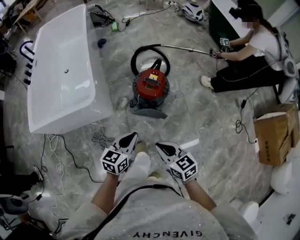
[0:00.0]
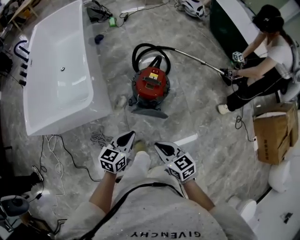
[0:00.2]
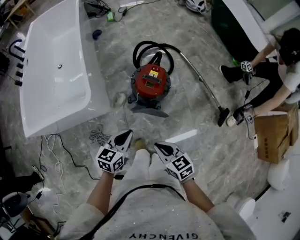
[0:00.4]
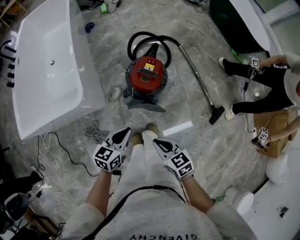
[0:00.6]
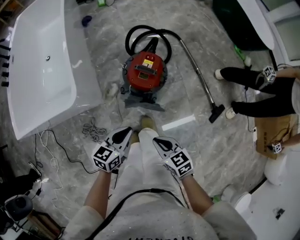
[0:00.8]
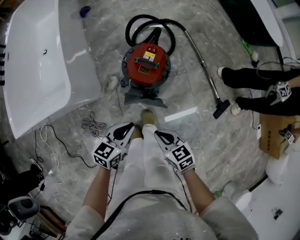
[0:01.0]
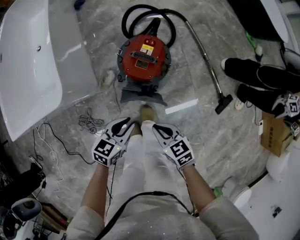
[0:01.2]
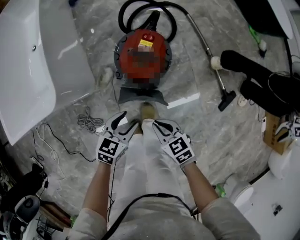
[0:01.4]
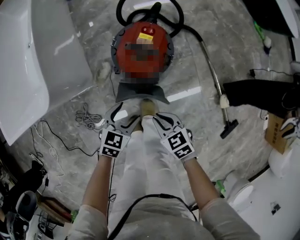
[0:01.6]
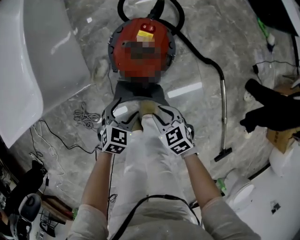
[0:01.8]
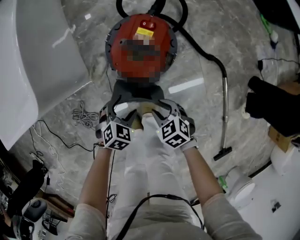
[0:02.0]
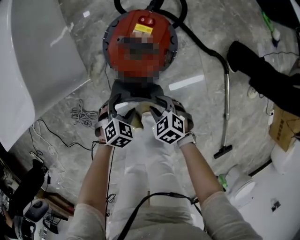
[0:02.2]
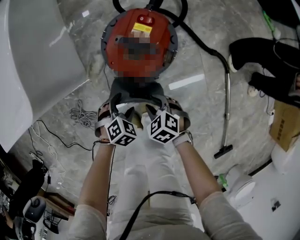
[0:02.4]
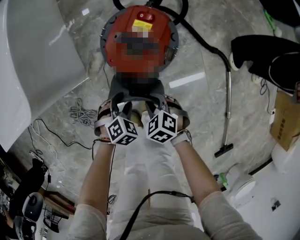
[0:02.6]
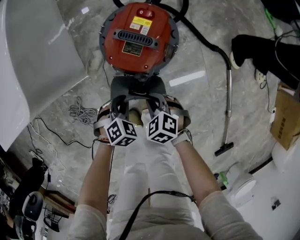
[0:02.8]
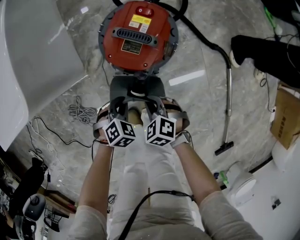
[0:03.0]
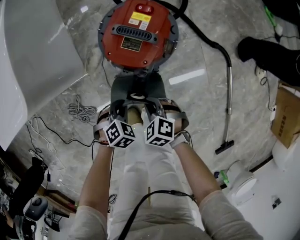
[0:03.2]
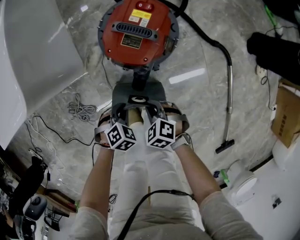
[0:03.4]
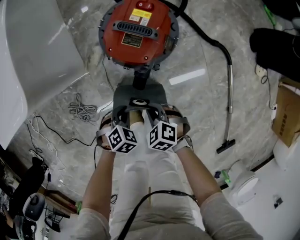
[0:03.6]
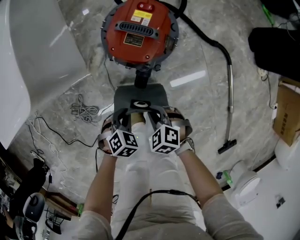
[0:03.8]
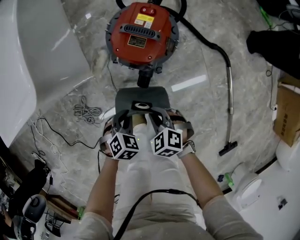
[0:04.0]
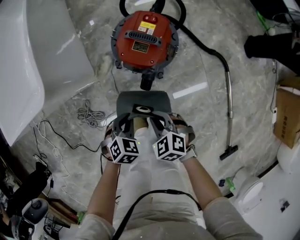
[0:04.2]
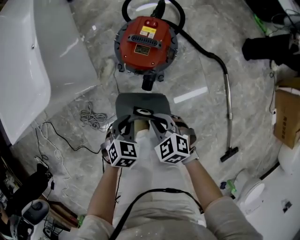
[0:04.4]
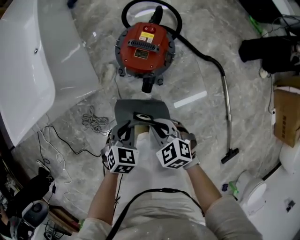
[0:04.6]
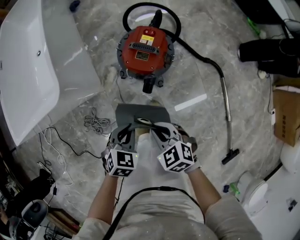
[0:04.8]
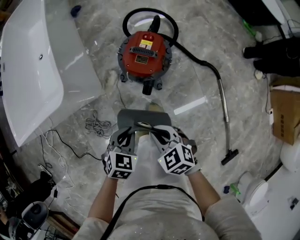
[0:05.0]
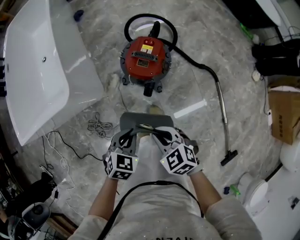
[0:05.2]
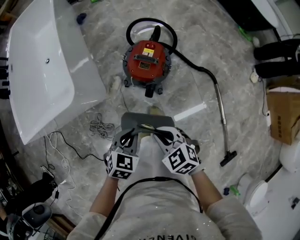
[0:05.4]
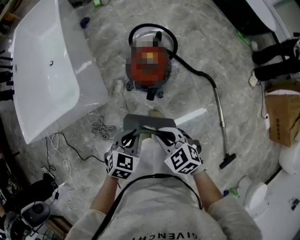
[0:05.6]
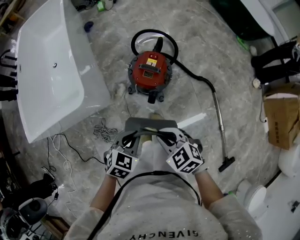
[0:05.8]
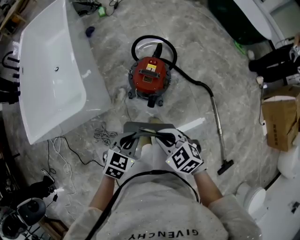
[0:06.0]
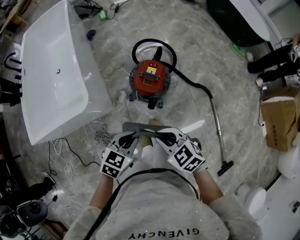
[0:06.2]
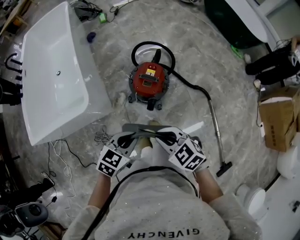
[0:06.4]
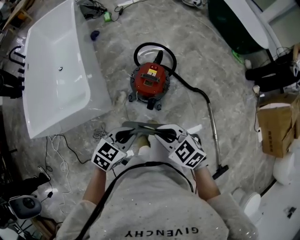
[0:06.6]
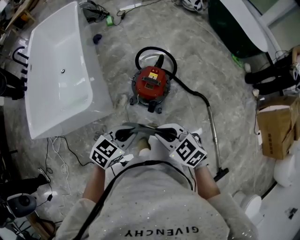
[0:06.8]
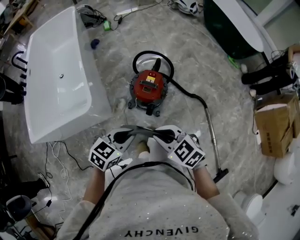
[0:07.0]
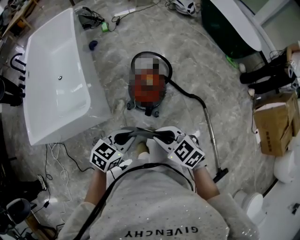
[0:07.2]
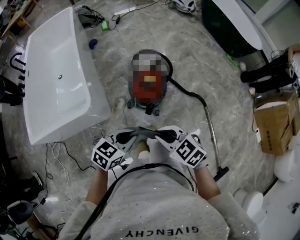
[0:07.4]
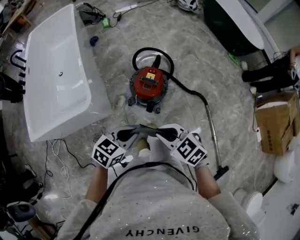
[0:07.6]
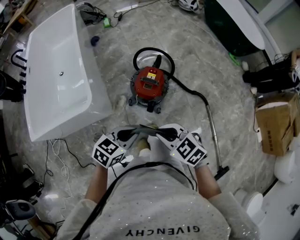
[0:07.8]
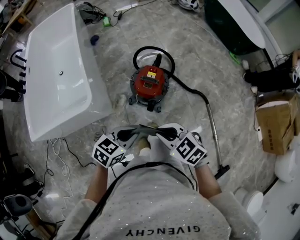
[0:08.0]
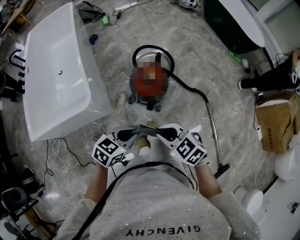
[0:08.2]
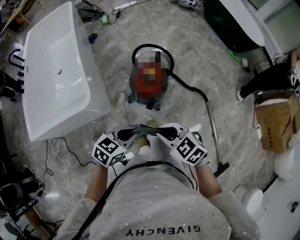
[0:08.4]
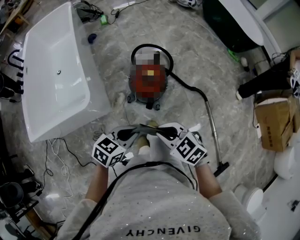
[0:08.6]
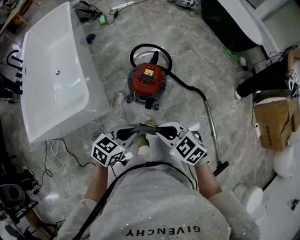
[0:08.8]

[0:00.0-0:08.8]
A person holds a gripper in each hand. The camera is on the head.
0:00.0 to 0:01.4: The two grippers go about 25 cm downward and forward. The left gripper opens up.
0:01.4 to 0:03.0: Both grippers move downward, approximately 20 cm. The right gripper changes its angle by some 40 degrees, and opens, then closes once more. Meanwhile the left gripper tilts its fingers roughly 30 degrees downward, and closes its fingers.
0:03.0 to 0:04.4: The two grippers go approximately 15 cm upward.
0:04.4 to 0:05.8: The grippers both shift upward by some 20 cm.
0:05.8 to 0:07.4: Both grippers move upward, some 10 cm. The left gripper rotates approximately 20 degrees.
0:07.4 to 0:08.8: The grippers move only a little.

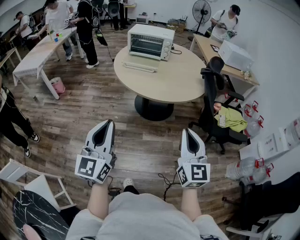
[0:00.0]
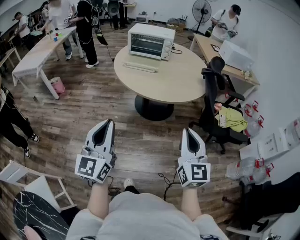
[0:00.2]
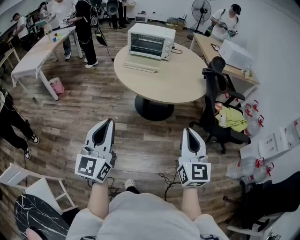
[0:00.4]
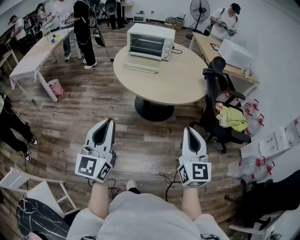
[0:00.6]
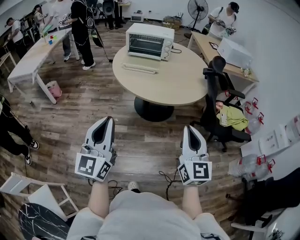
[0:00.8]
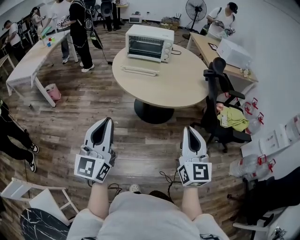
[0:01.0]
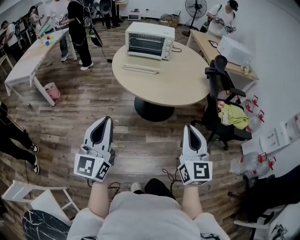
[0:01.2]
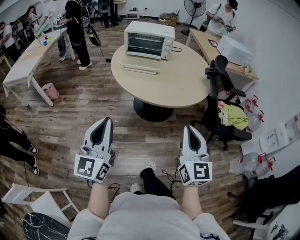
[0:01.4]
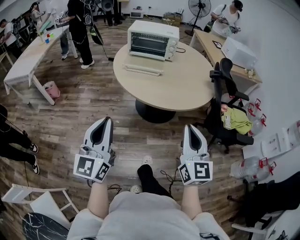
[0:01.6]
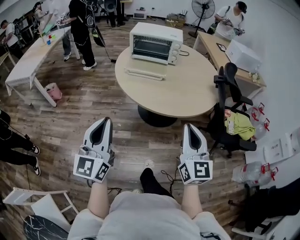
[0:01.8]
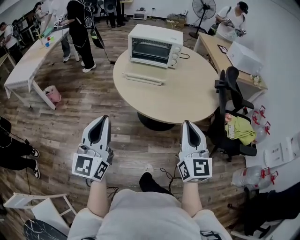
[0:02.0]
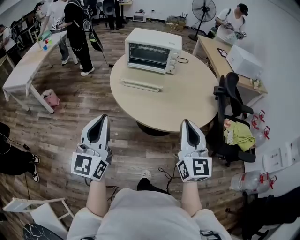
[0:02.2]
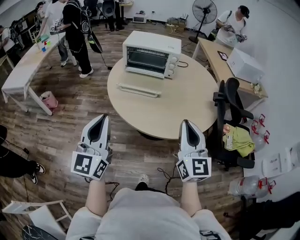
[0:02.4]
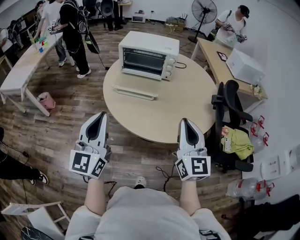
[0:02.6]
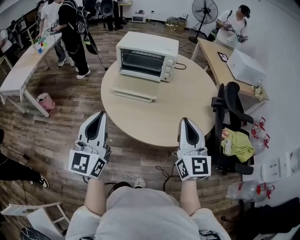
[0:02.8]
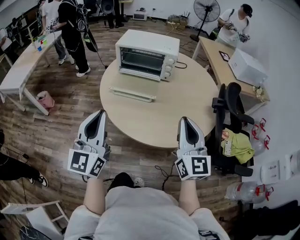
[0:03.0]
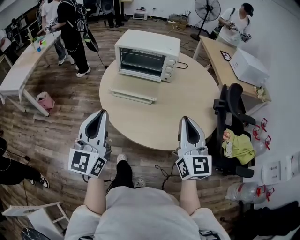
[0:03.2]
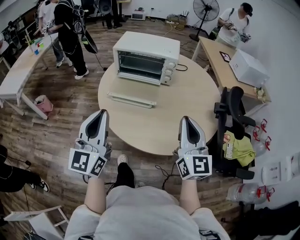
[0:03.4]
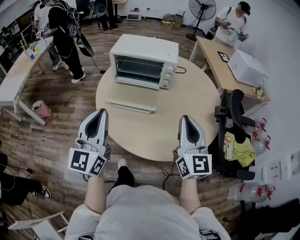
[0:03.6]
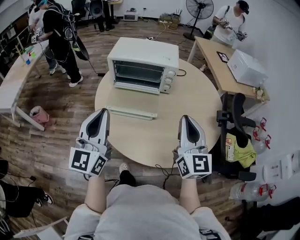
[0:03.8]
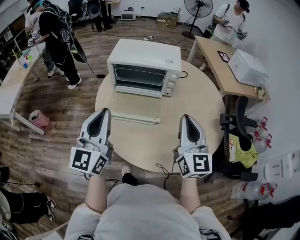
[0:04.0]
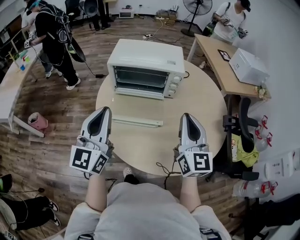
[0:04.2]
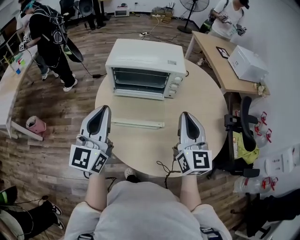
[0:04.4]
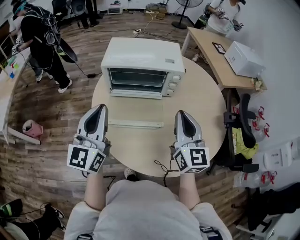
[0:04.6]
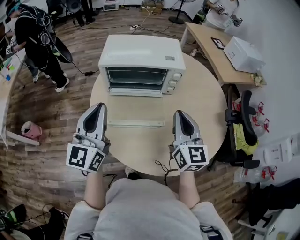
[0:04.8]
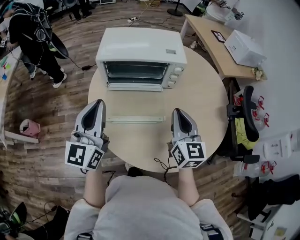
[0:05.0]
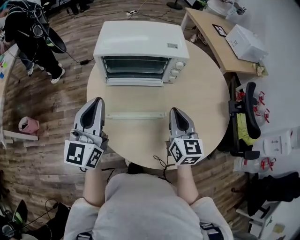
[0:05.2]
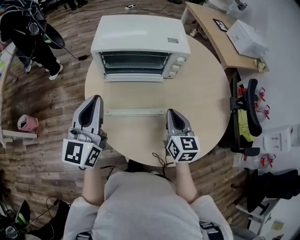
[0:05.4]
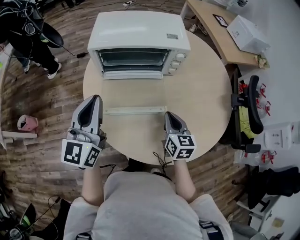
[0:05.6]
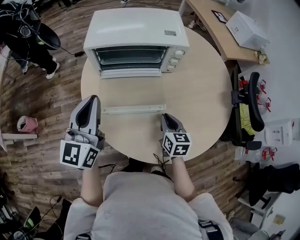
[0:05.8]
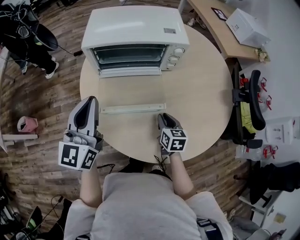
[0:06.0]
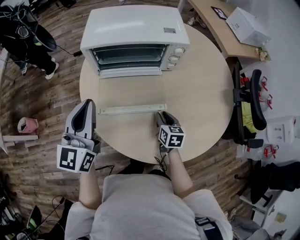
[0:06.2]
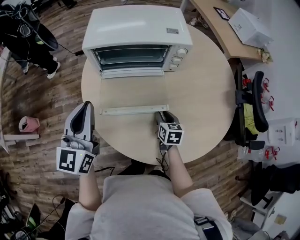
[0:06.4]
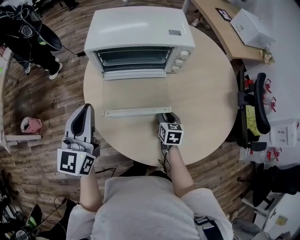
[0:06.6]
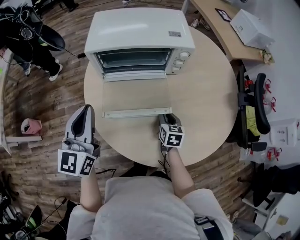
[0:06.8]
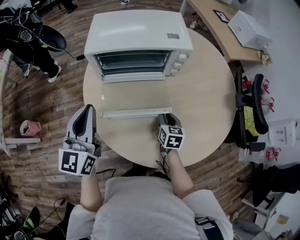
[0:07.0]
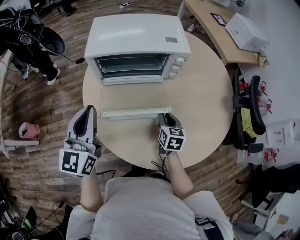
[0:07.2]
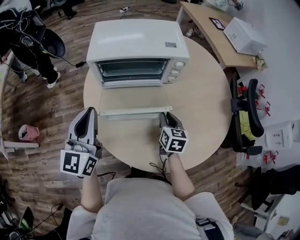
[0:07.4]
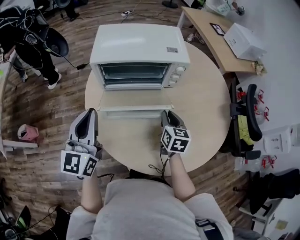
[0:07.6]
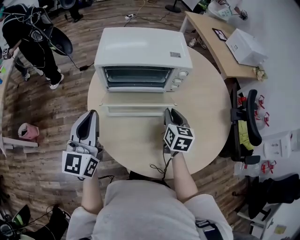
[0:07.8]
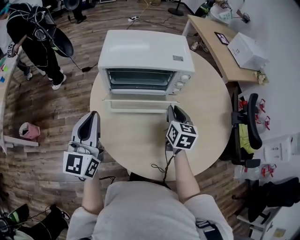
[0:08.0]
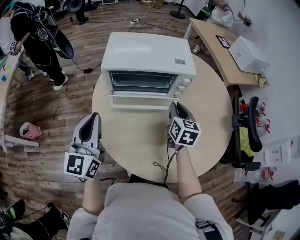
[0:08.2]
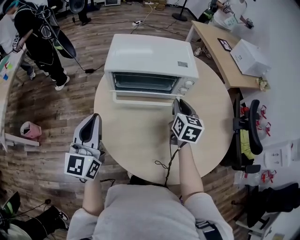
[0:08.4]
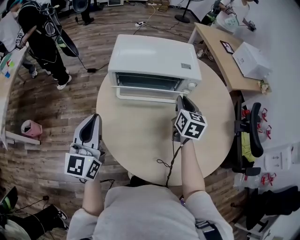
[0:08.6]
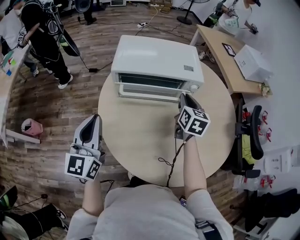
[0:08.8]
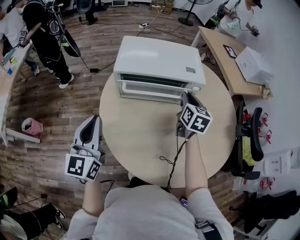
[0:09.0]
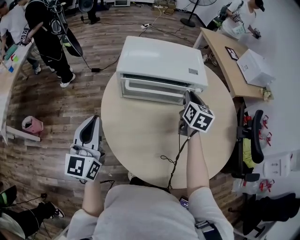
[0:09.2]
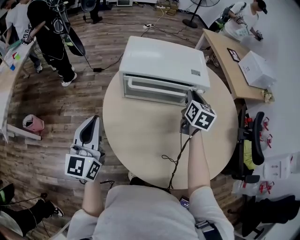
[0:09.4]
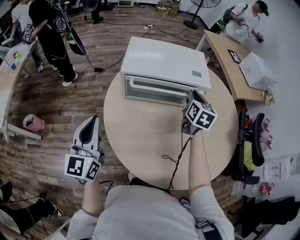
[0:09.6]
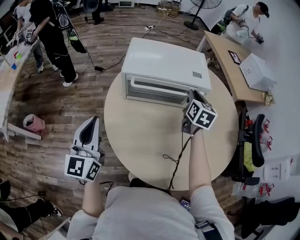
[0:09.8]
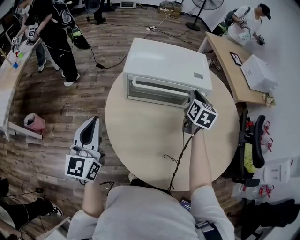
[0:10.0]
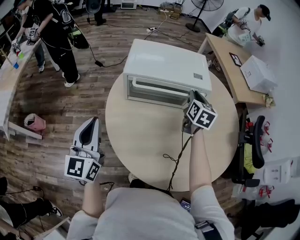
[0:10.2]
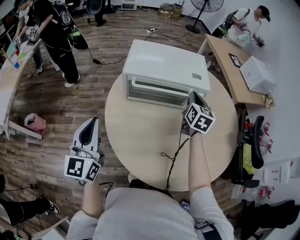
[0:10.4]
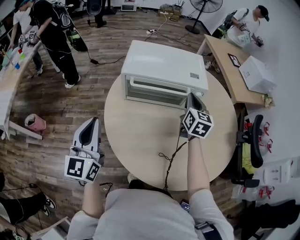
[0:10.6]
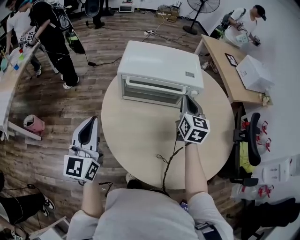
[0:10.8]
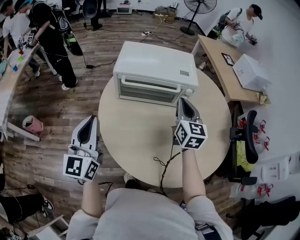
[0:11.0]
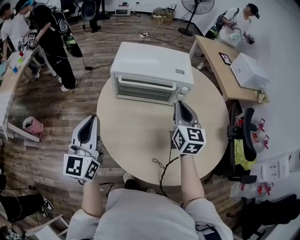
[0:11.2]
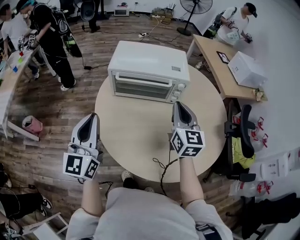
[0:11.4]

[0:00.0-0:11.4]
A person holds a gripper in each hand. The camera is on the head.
0:00.0 to 0:01.4: Both grippers travel together forward and to the left, approximately 10 cm.
0:01.4 to 0:02.8: The two grippers go some 30 cm forward.
0:02.8 to 0:04.2: Both grippers travel together forward, approximately 25 cm.
0:04.2 to 0:05.6: The right gripper heads downward, covering approximately 25 cm, and tips its fingers downward by roughly 30 degrees, while the left gripper heads forward and downward, covering approximately 10 cm.
0:05.6 to 0:07.2: The right gripper moves downward, approximately 10 cm.
0:07.2 to 0:08.6: The right gripper shifts roughly 20 cm upward and forward.
0:08.6 to 0:10.0: The right gripper travels forward by about 5 cm. The left gripper ends up some 5 cm from where it was.
0:10.0 to 0:11.4: The right gripper moves backward and upward, about 20 cm, and turns by roughly 20 degrees, while the left gripper is displaced to the right and backward by approximately 10 cm.

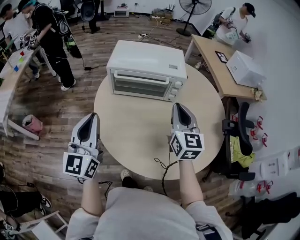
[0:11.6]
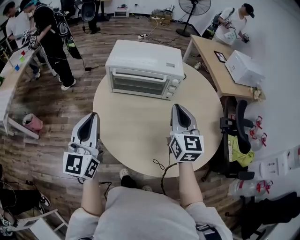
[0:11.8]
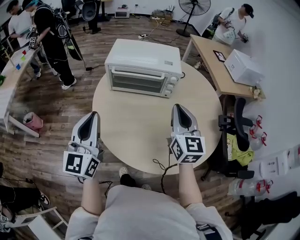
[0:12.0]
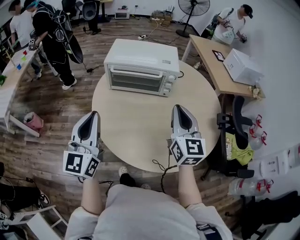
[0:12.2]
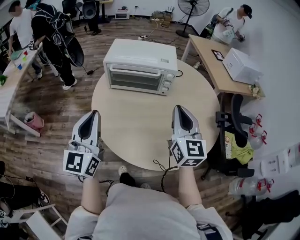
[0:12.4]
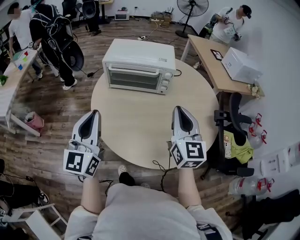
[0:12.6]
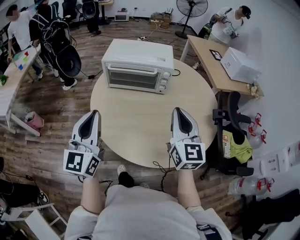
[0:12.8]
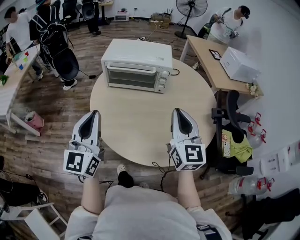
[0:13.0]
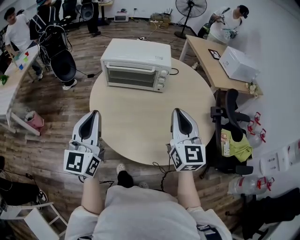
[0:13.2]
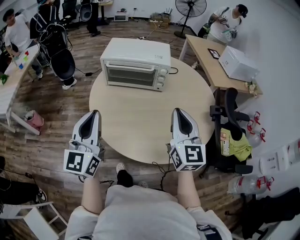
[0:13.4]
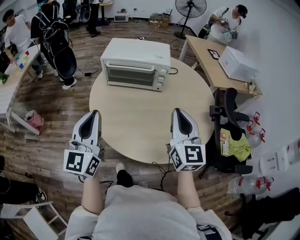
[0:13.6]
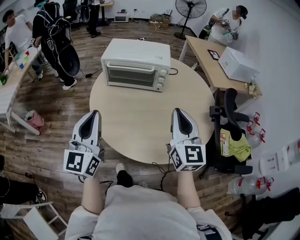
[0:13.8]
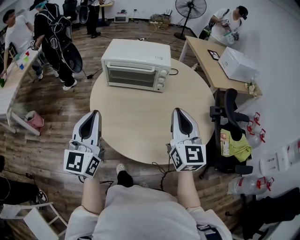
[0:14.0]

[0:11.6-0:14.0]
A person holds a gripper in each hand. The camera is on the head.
0:11.6 to 0:12.8: Both grippers move backward and to the right, some 10 cm.
0:12.8 to 0:14.0: The grippers stay close to where they were, moving slightly.

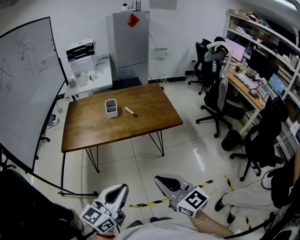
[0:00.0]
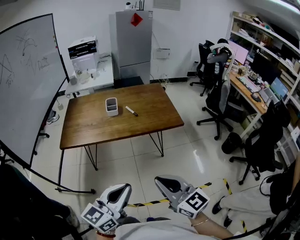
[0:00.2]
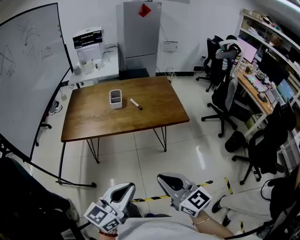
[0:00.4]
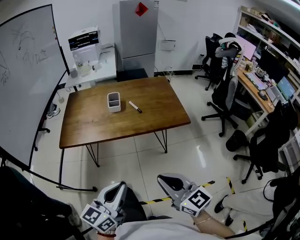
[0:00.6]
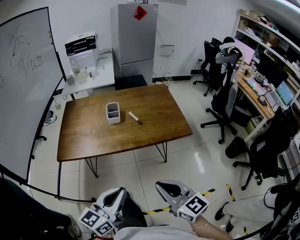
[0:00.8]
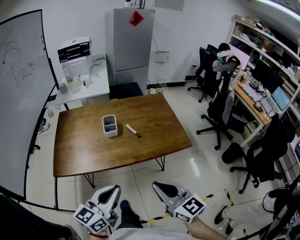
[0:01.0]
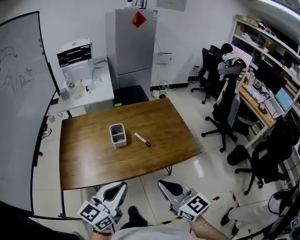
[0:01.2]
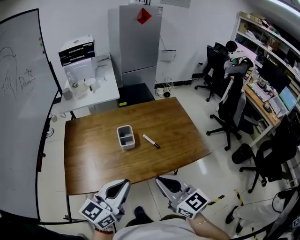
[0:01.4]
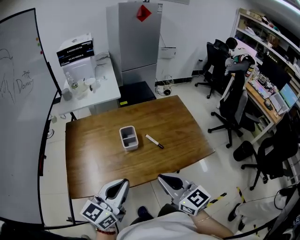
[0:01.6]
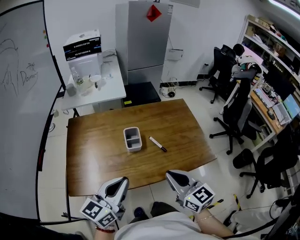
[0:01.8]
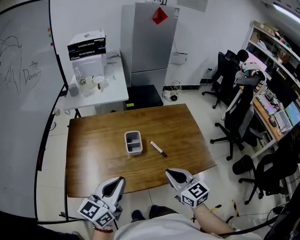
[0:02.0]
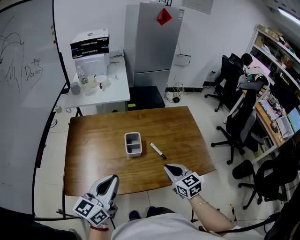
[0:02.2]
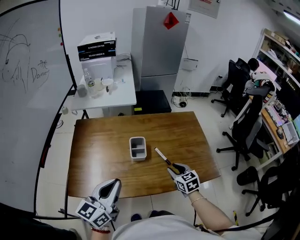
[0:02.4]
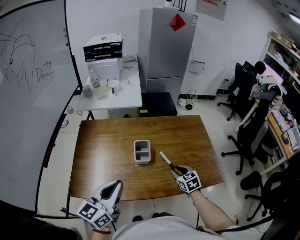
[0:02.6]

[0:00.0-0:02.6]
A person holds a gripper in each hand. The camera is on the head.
0:00.0 to 0:01.2: The grippers both shift forward by approximately 30 cm.
0:01.2 to 0:02.6: The right gripper moves forward and downward, approximately 35 cm, tips its fingers downward by roughly 40 degrees, and opens its fingers. Meanwhile the left gripper travels forward and to the left by approximately 20 cm.
